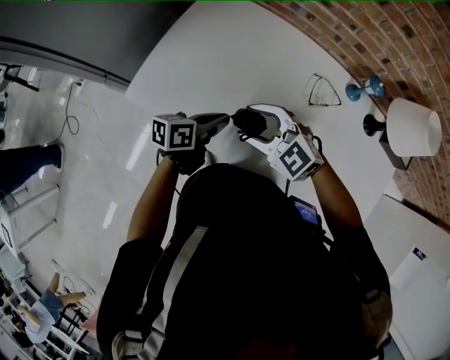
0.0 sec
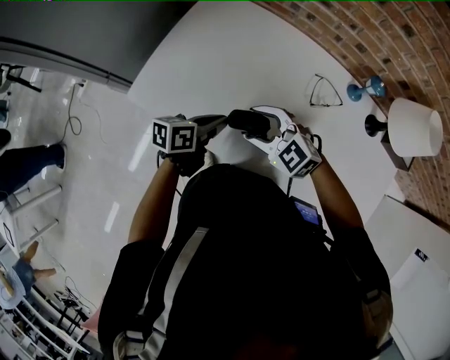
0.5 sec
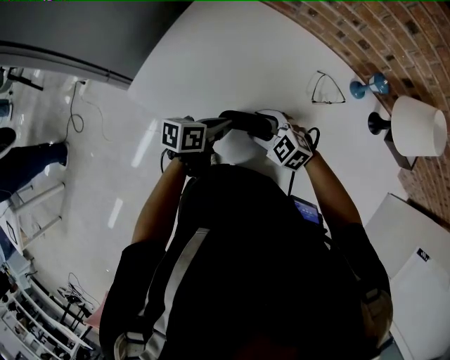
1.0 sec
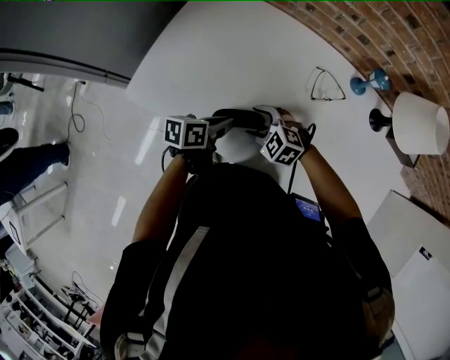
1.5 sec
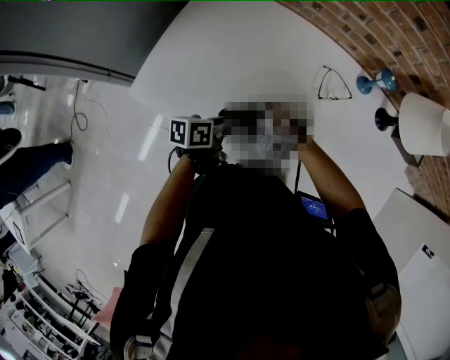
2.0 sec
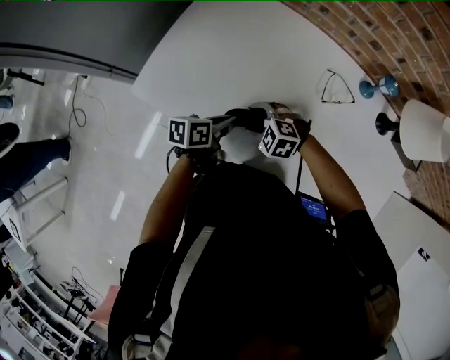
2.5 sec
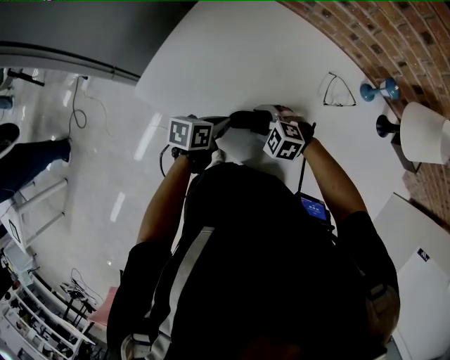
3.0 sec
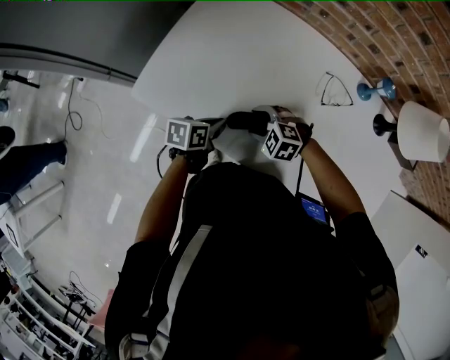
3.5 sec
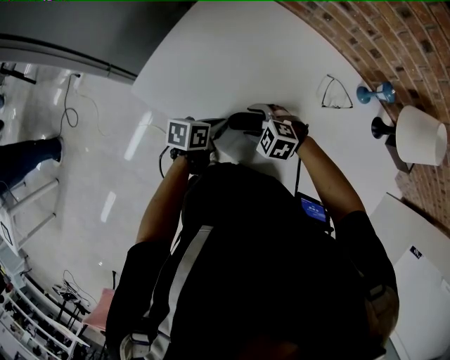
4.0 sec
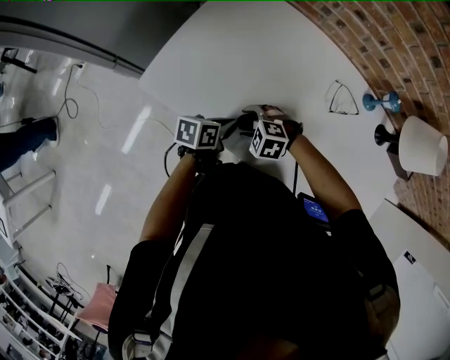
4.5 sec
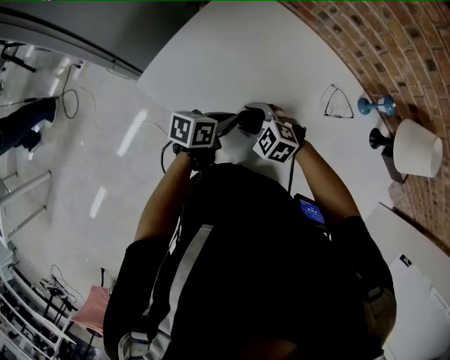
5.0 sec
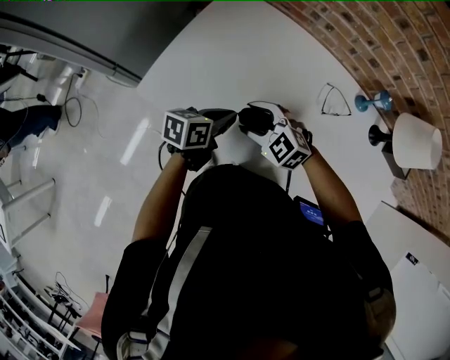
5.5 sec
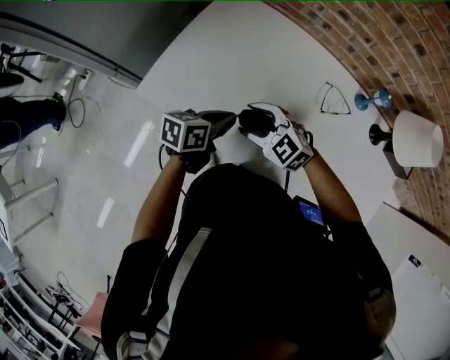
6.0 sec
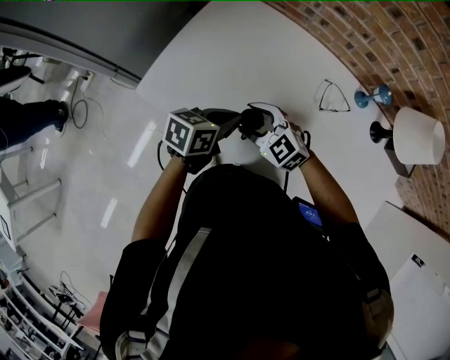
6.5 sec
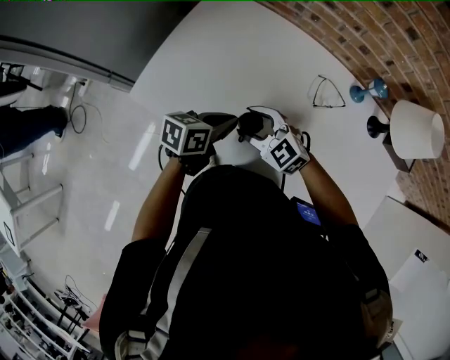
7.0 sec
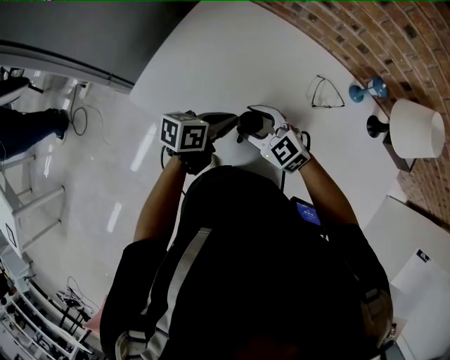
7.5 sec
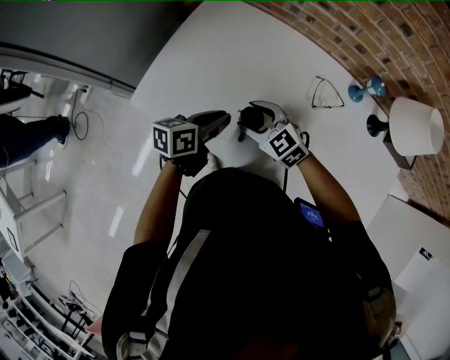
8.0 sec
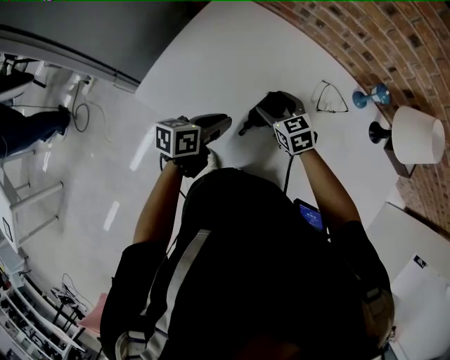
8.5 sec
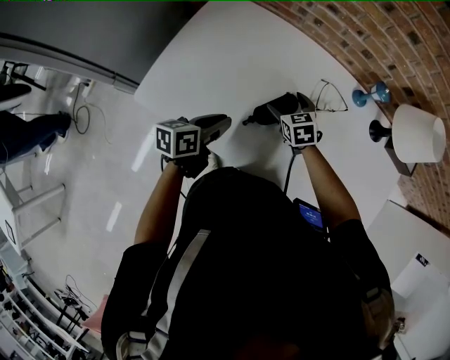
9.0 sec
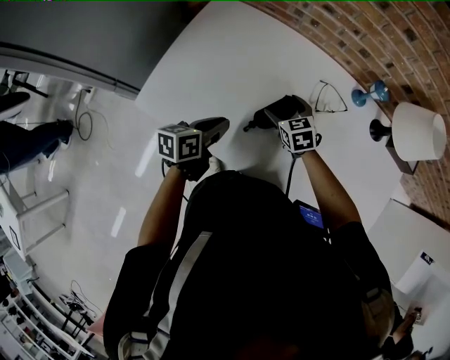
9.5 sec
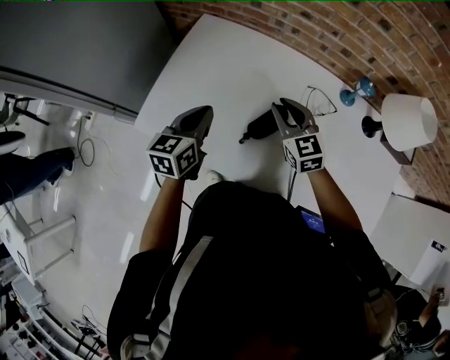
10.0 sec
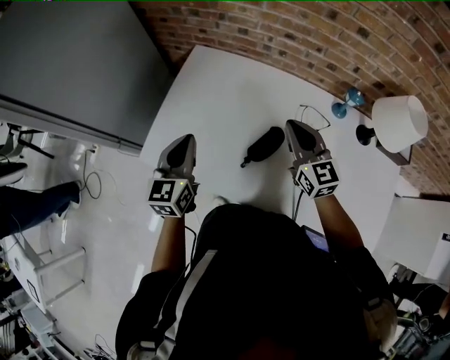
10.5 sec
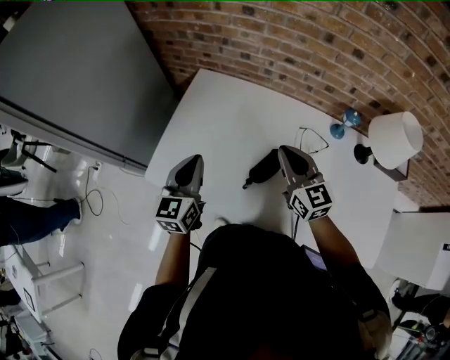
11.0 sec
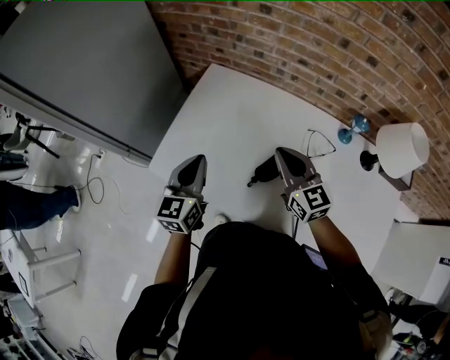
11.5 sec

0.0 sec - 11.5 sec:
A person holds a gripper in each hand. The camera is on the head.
0.0 sec - 2.0 sec: The left gripper shifts roughly 5 cm downward, while the right gripper moves downward, roughly 20 cm, and swivels some 30 degrees.
2.0 sec - 4.0 sec: The left gripper changes place by some 5 cm.
4.0 sec - 6.0 sec: Both grippers move upward, approximately 10 cm. The right gripper swivels roughly 30 degrees.
6.0 sec - 7.5 sec: The grippers stay close to where they were, moving slightly.
7.5 sec - 9.5 sec: The right gripper travels forward, to the right and downward by roughly 15 cm, changes its angle by about 40 degrees, and opens its fingers.
9.5 sec - 11.5 sec: The right gripper shifts some 20 cm upward, points its fingers some 40 degrees further upward, and closes up. The left gripper moves upward and to the left, some 15 cm, and swivels about 40 degrees.

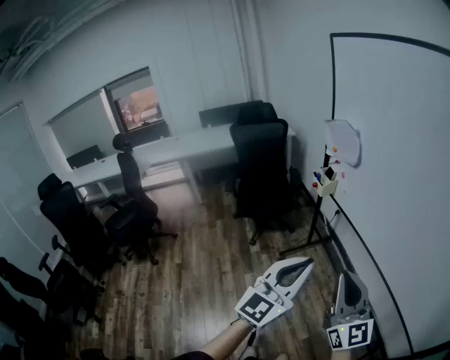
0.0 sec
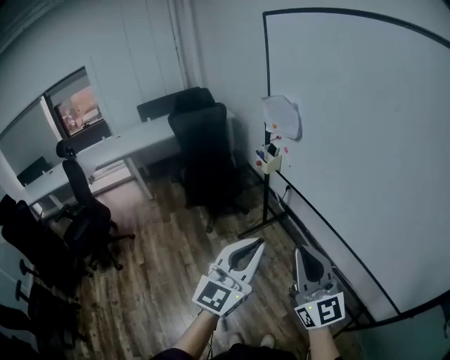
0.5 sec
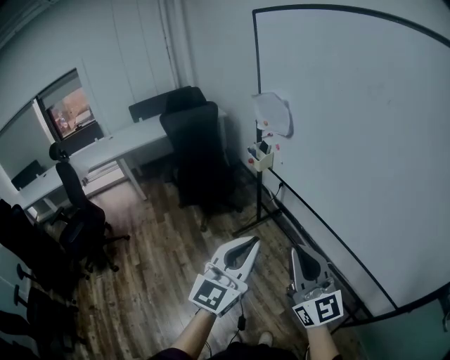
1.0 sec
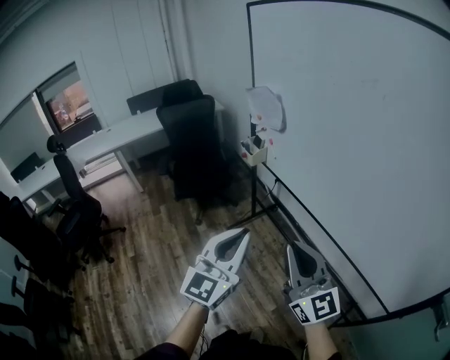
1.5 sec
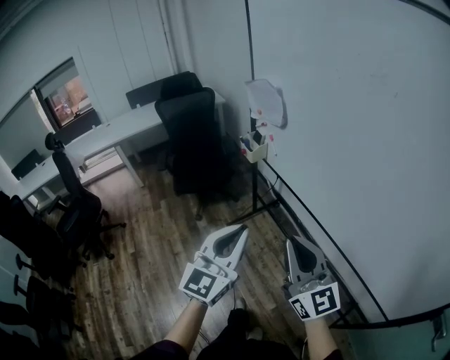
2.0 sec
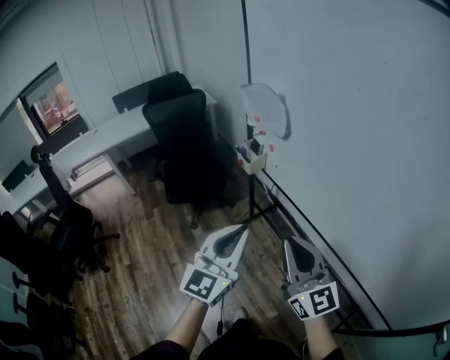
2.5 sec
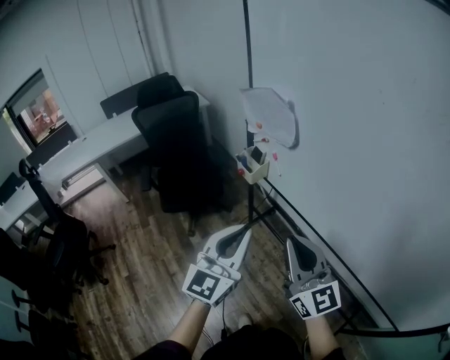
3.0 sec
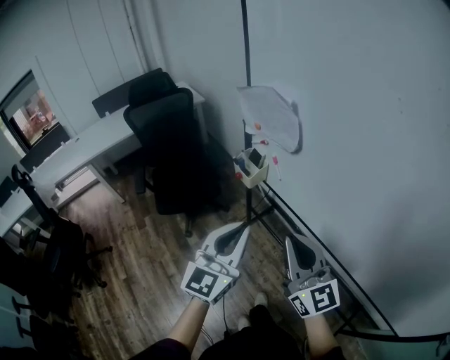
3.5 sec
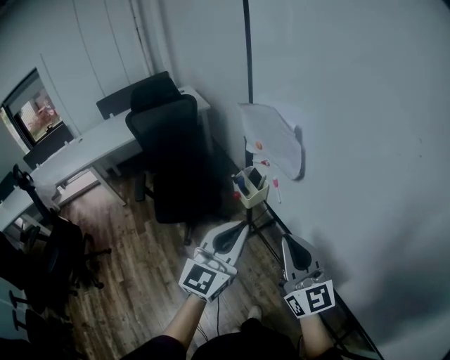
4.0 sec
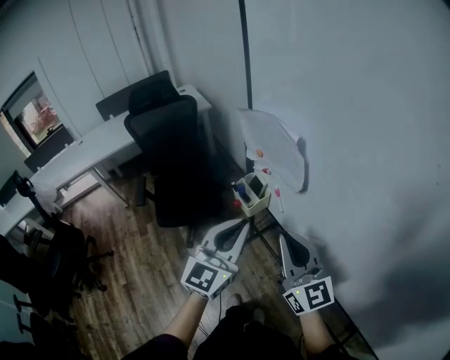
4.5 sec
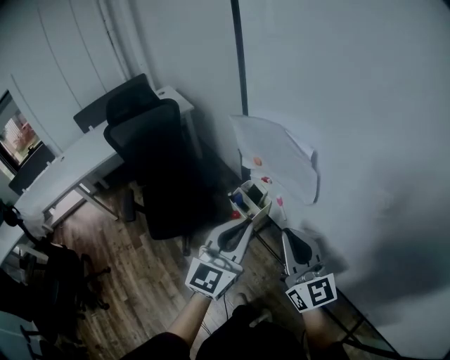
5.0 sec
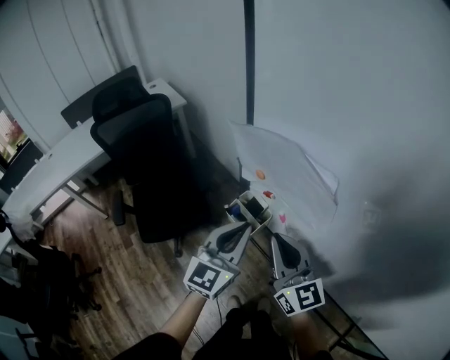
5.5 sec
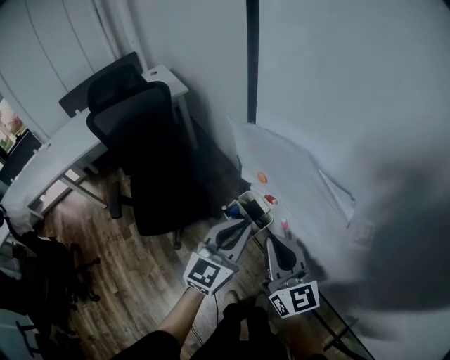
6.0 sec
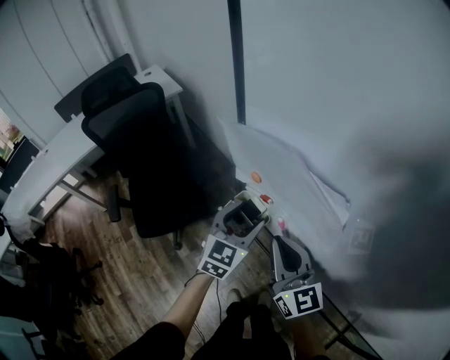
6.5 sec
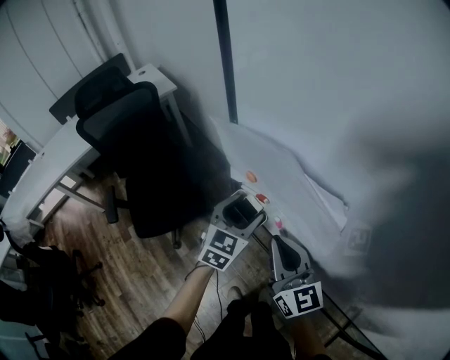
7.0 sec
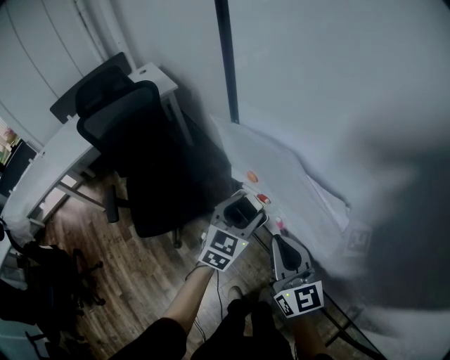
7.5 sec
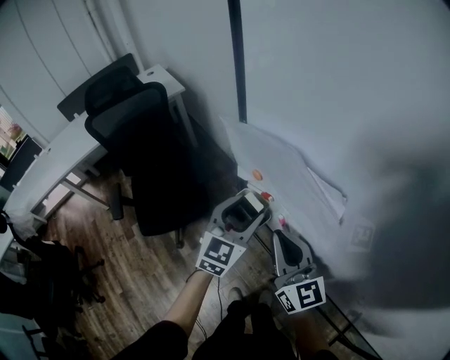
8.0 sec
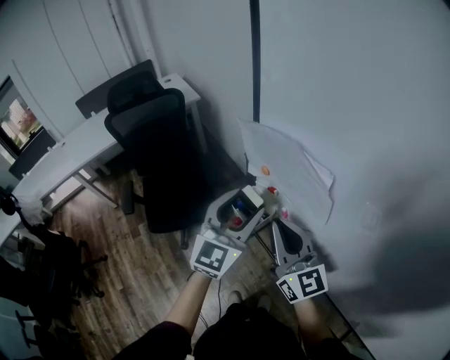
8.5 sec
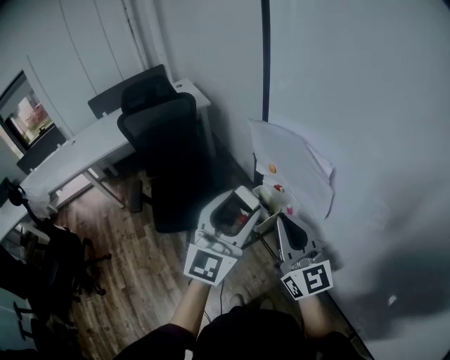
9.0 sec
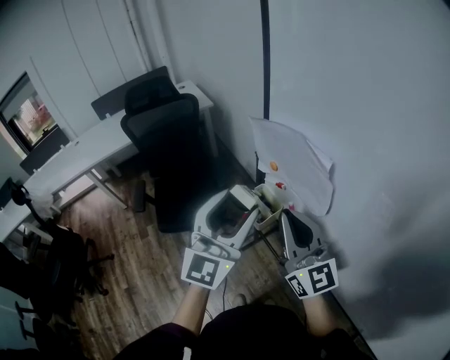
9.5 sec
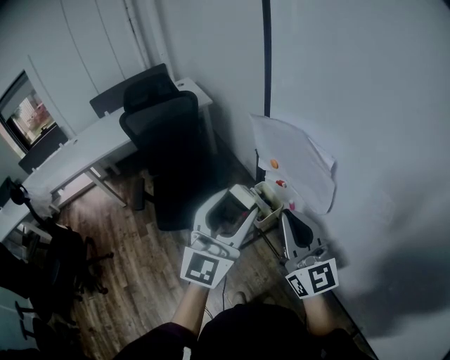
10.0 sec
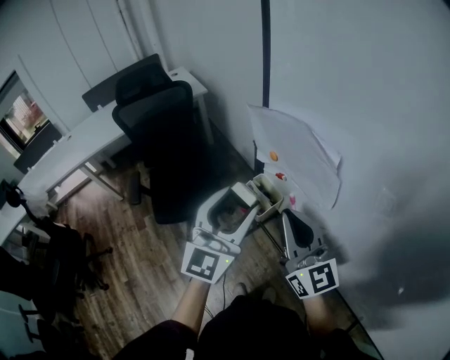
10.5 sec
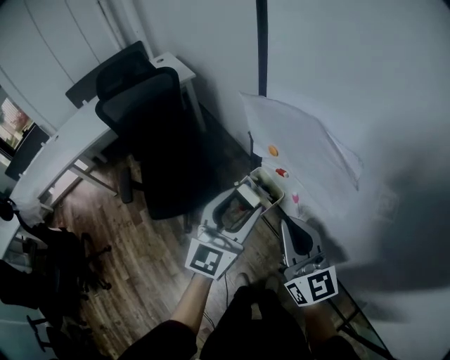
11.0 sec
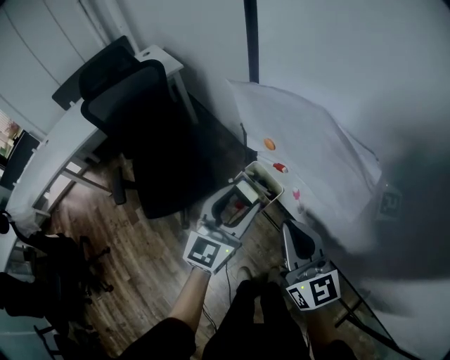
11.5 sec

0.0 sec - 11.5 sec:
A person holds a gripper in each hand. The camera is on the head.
0.0 sec - 2.0 sec: Both grippers travel together forward, about 10 cm.
2.0 sec - 4.0 sec: Both grippers move forward, about 35 cm.
4.0 sec - 6.0 sec: Both grippers travel together forward and downward, some 25 cm.
6.0 sec - 7.5 sec: The left gripper shifts approximately 10 cm forward and downward, and opens up.
7.5 sec - 9.5 sec: The right gripper travels upward and backward by about 15 cm. Meanwhile the left gripper is displaced upward and backward by about 30 cm, and angles its fingers upward, by some 40 degrees.
9.5 sec - 11.5 sec: The right gripper travels downward by some 10 cm, while the left gripper is displaced downward and forward by roughly 20 cm, and rotates roughly 20 degrees.

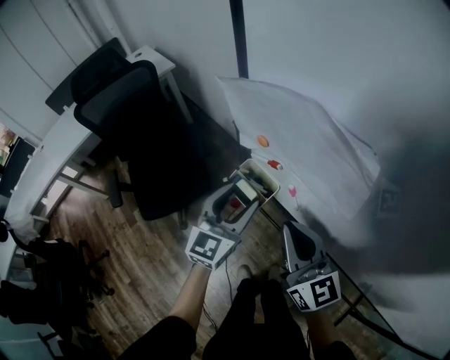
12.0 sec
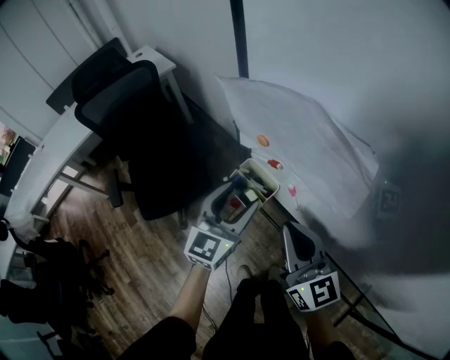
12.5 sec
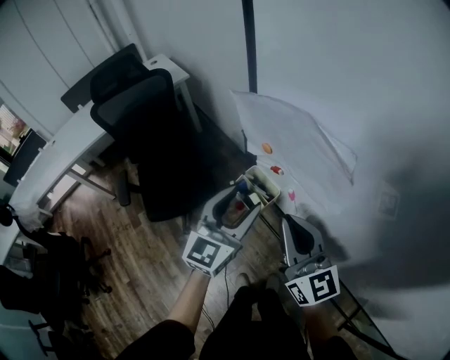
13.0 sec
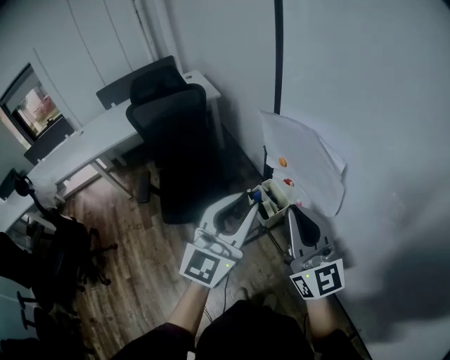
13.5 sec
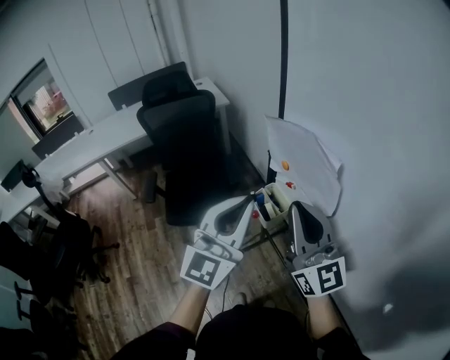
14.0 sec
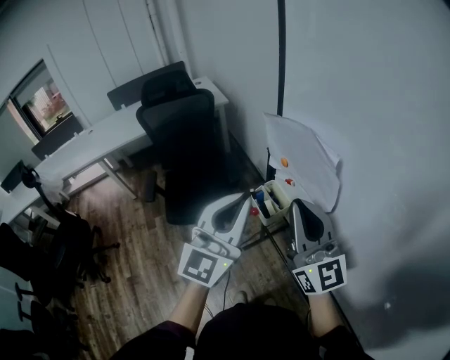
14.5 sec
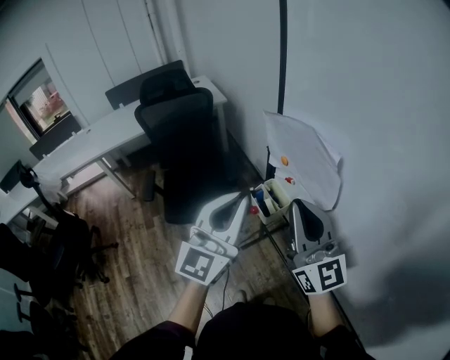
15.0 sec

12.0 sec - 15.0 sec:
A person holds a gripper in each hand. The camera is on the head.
12.0 sec - 13.5 sec: The right gripper shifts about 15 cm upward, and changes its angle by approximately 20 degrees; the left gripper is displaced upward and backward by roughly 20 cm, swivels some 20 degrees, and closes its fingers.
13.5 sec - 15.0 sec: The grippers move only a little.

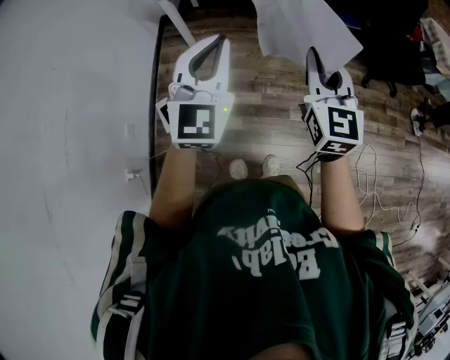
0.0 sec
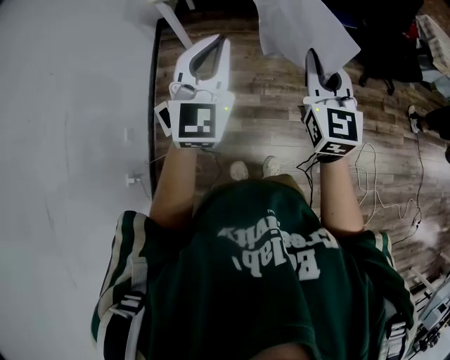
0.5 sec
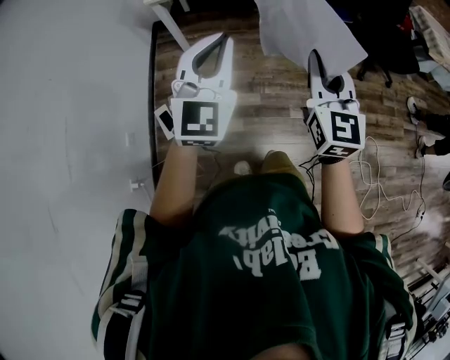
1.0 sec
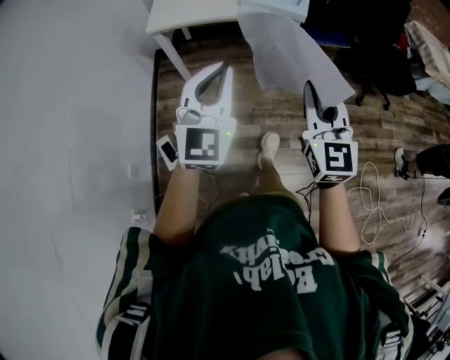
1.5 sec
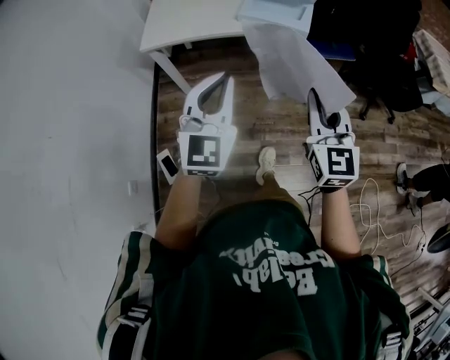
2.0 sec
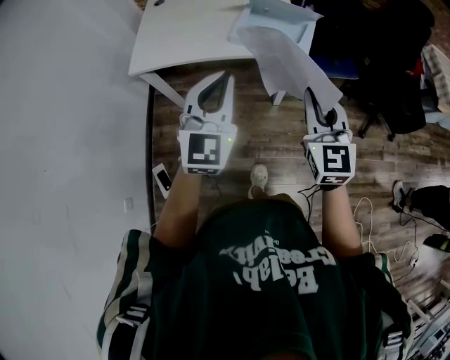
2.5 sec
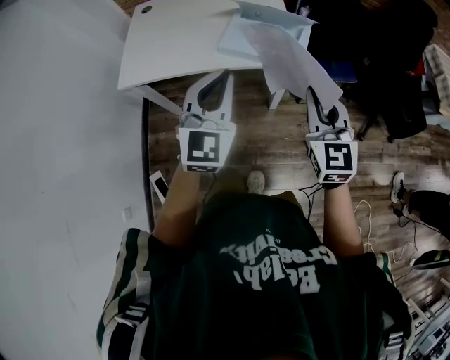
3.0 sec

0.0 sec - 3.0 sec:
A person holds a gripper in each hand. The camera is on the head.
0.0 sec - 1.5 sec: The left gripper shifts by approximately 5 cm.
1.5 sec - 3.0 sec: The two grippers go about 35 cm forward.
